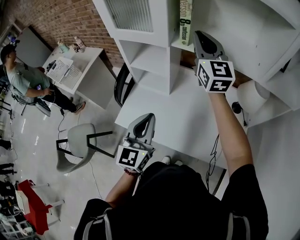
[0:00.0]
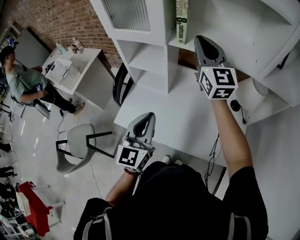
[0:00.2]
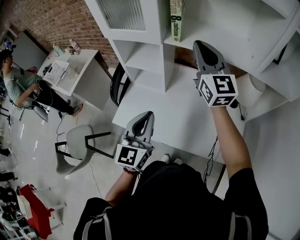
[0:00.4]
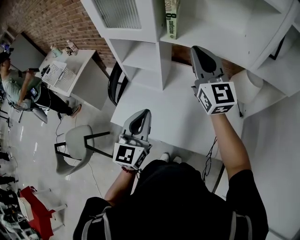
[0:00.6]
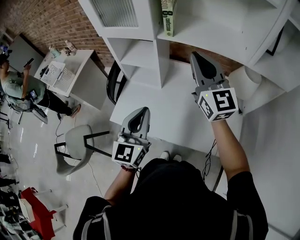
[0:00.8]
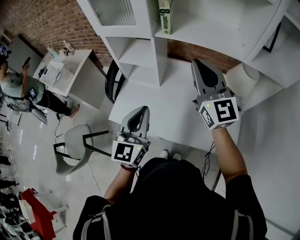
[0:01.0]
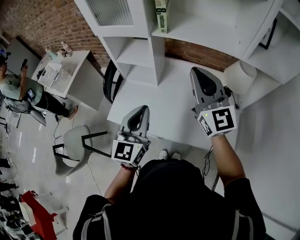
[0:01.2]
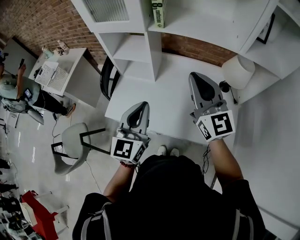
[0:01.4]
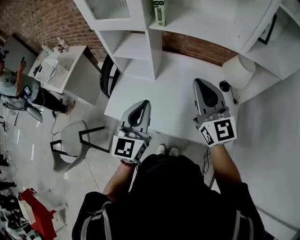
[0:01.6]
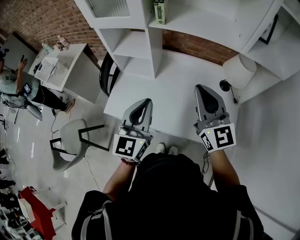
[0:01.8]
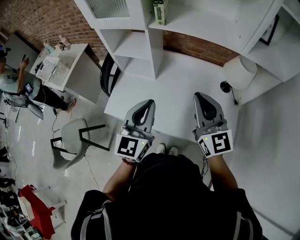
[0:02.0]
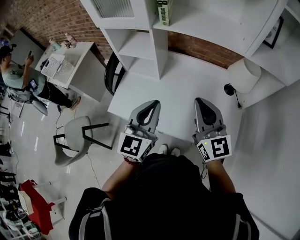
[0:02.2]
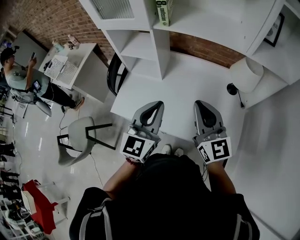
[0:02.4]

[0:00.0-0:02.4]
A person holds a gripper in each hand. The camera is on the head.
0:00.0 to 0:01.2: The right gripper is displaced backward by about 20 cm.
0:01.2 to 0:02.4: The right gripper heads downward and backward, covering some 10 cm, while the left gripper is displaced to the right by about 5 cm.

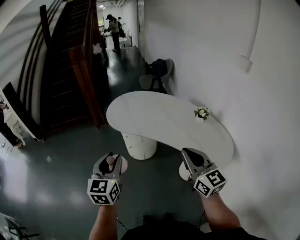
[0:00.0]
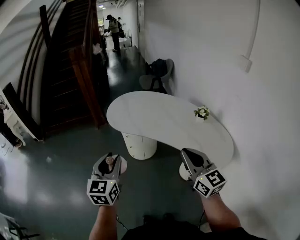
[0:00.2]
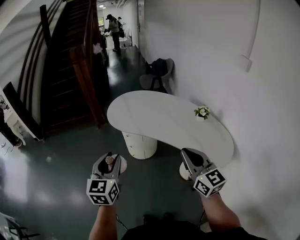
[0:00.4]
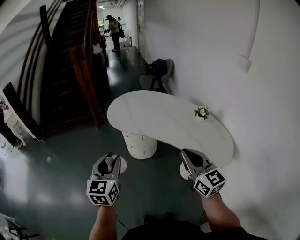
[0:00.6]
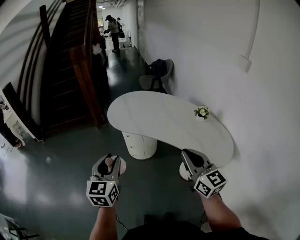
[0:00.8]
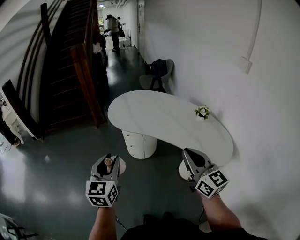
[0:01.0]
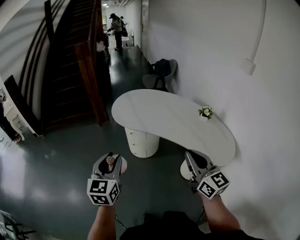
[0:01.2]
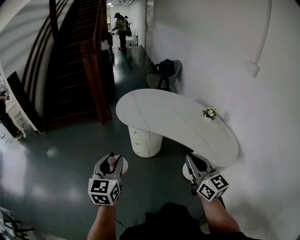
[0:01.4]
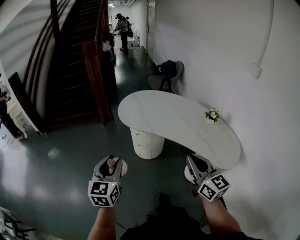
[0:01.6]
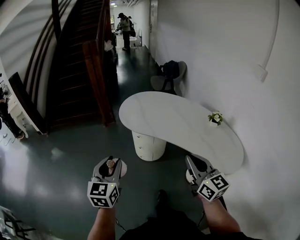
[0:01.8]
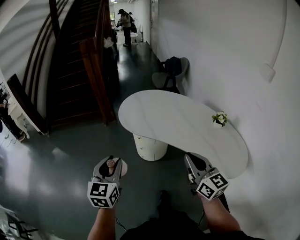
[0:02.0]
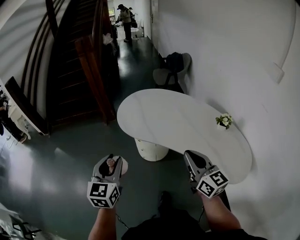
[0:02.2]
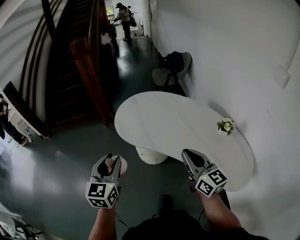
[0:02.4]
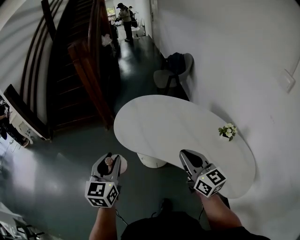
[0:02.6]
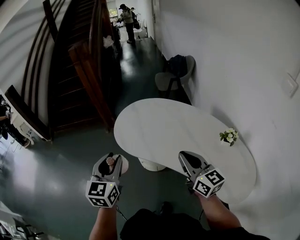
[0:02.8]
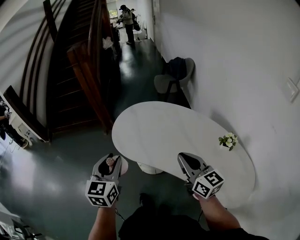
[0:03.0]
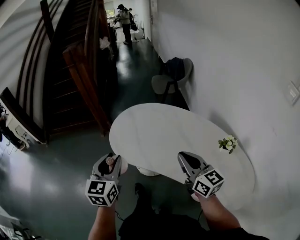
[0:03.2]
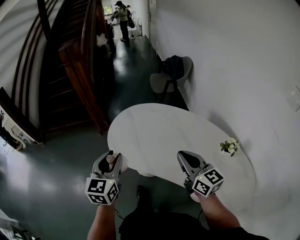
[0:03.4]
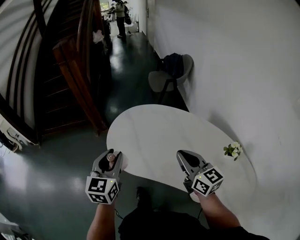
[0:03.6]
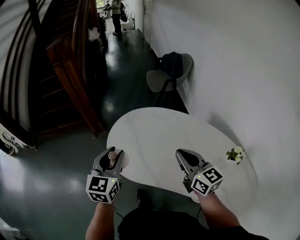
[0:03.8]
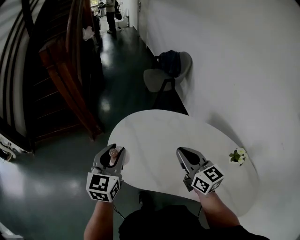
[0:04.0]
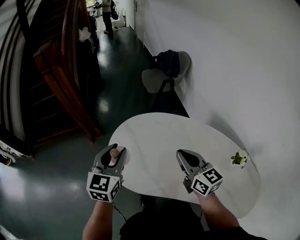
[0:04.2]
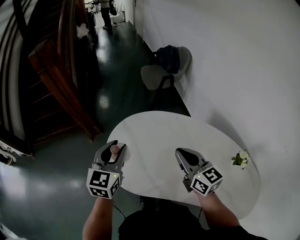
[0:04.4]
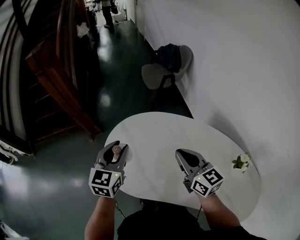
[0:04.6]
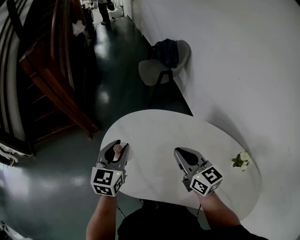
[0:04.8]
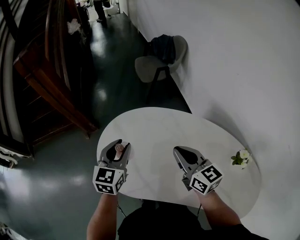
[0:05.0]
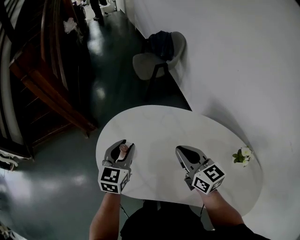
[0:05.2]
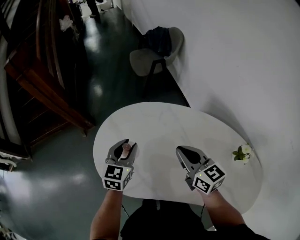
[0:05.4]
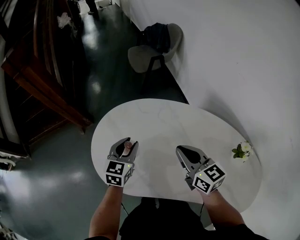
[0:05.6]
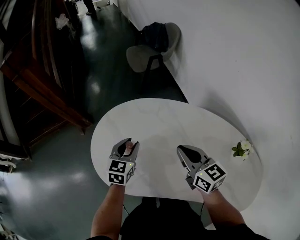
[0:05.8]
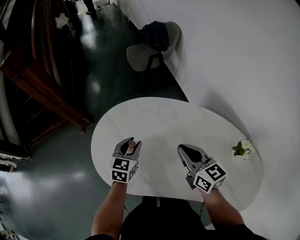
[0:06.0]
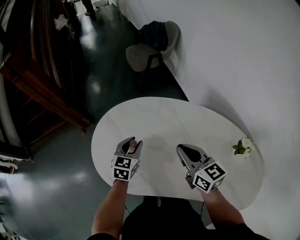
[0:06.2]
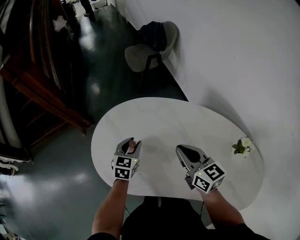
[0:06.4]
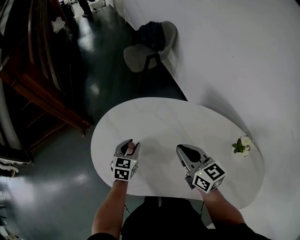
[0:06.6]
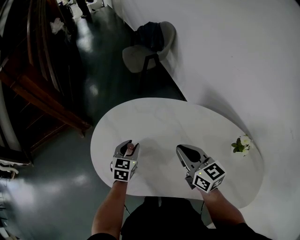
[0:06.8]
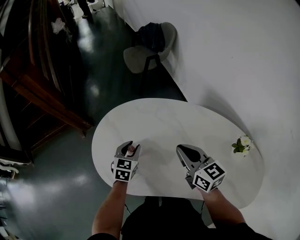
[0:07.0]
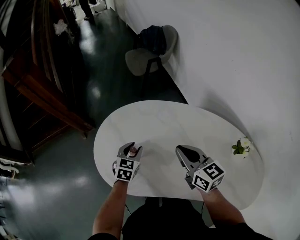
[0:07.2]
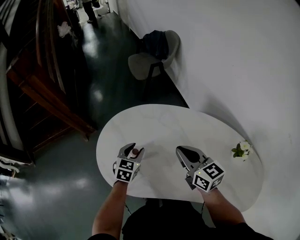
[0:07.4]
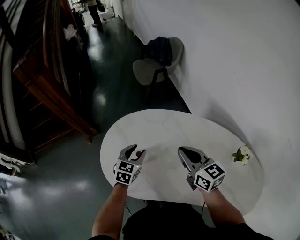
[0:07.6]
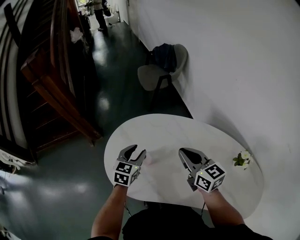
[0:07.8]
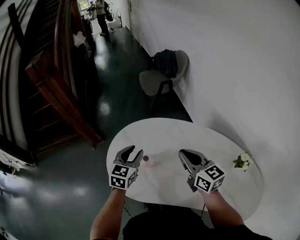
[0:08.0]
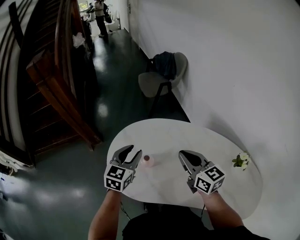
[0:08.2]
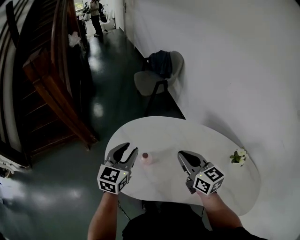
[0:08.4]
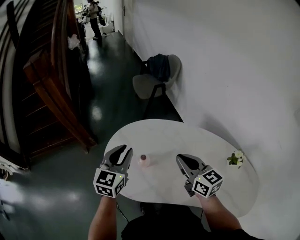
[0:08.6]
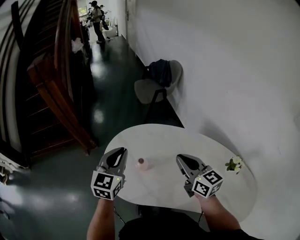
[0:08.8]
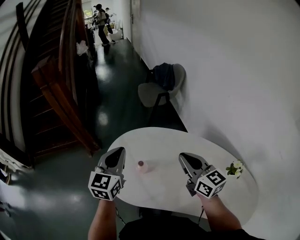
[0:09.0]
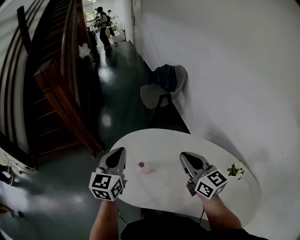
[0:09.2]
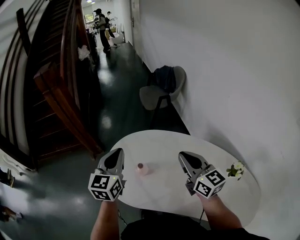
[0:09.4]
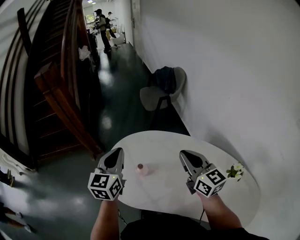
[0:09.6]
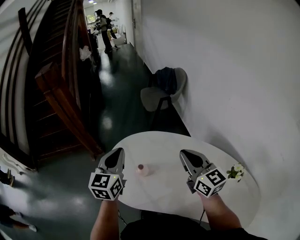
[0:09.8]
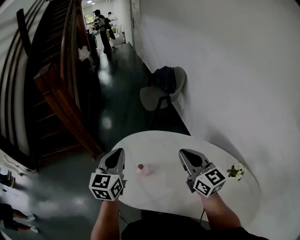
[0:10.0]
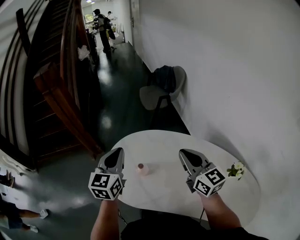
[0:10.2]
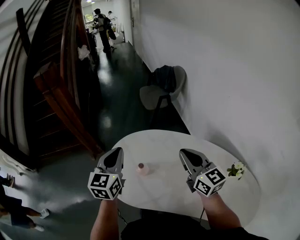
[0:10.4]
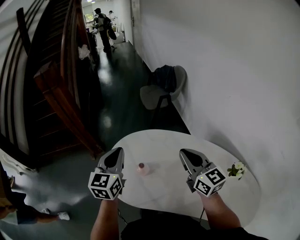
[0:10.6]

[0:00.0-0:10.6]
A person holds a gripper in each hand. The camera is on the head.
0:00.0 to 0:01.6: The two grippers go some 10 cm to the left.
0:01.6 to 0:03.0: The grippers both shift forward by approximately 30 cm.
0:03.0 to 0:04.6: The grippers both shift forward by roughly 30 cm.
0:04.6 to 0:06.0: The right gripper shifts roughly 10 cm downward and to the right; the left gripper shifts some 20 cm downward and to the right.
0:06.0 to 0:07.6: There are only small adjustments of the grippers.
0:07.6 to 0:09.0: The left gripper is displaced upward by some 20 cm, changes its angle by some 30 degrees, and closes its fingers; the right gripper goes about 10 cm upward.
0:09.0 to 0:10.6: There are only small adjustments of the grippers.

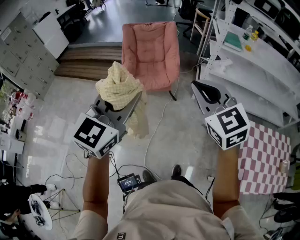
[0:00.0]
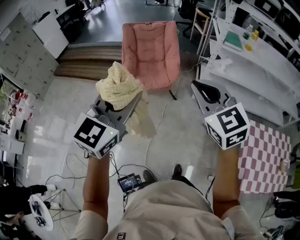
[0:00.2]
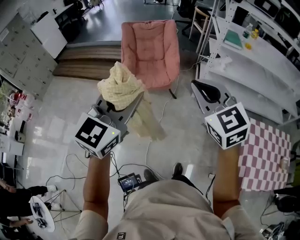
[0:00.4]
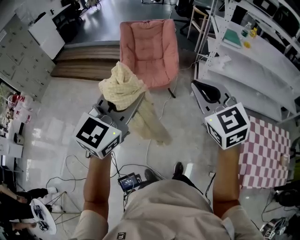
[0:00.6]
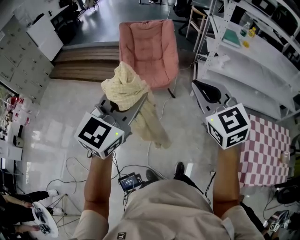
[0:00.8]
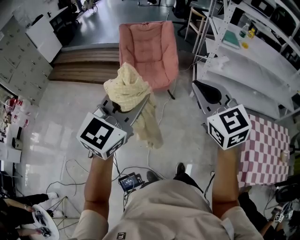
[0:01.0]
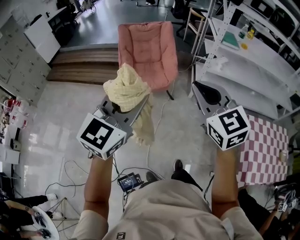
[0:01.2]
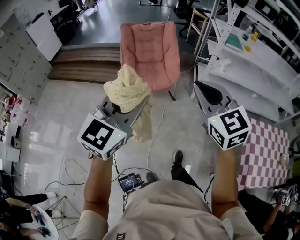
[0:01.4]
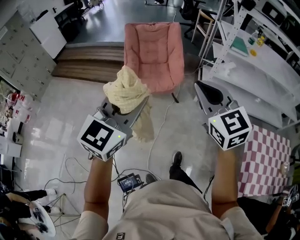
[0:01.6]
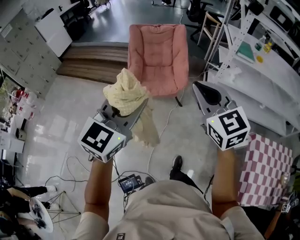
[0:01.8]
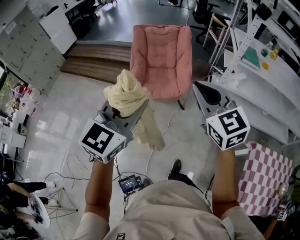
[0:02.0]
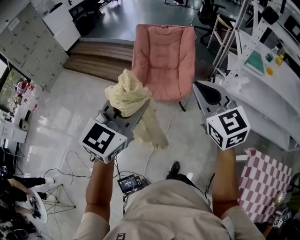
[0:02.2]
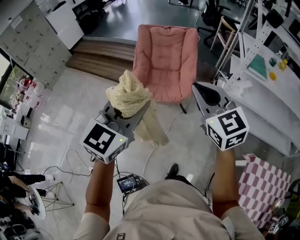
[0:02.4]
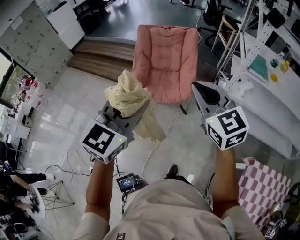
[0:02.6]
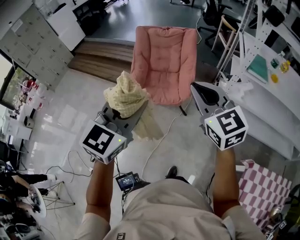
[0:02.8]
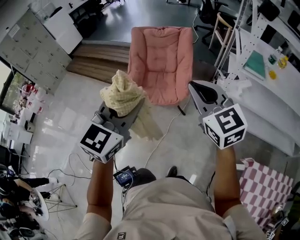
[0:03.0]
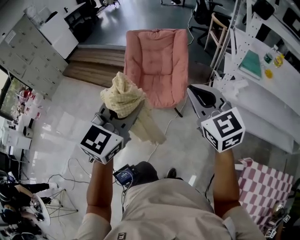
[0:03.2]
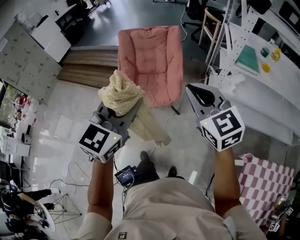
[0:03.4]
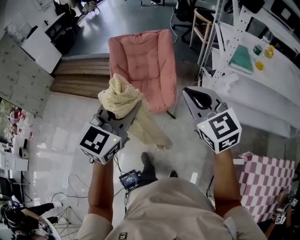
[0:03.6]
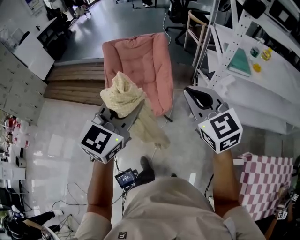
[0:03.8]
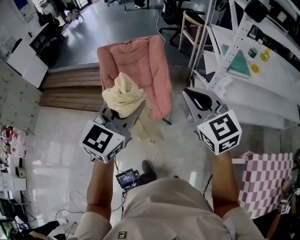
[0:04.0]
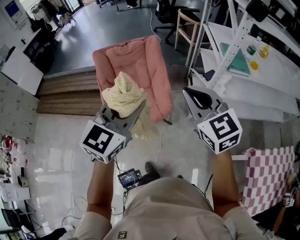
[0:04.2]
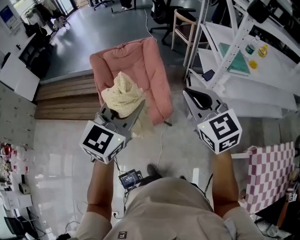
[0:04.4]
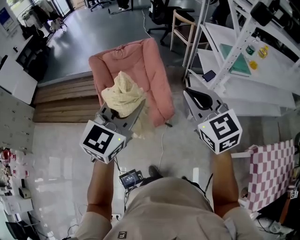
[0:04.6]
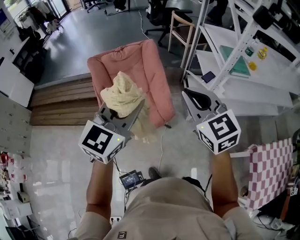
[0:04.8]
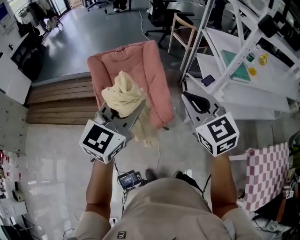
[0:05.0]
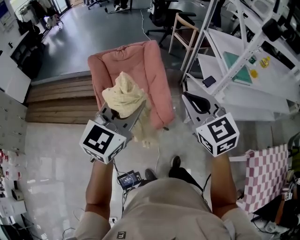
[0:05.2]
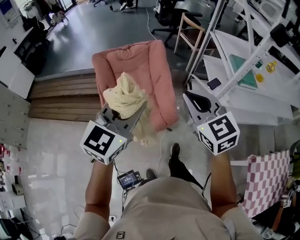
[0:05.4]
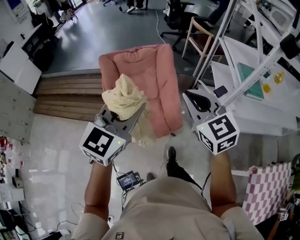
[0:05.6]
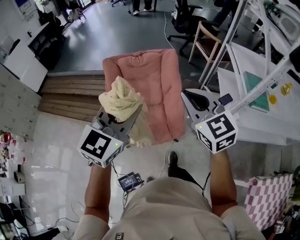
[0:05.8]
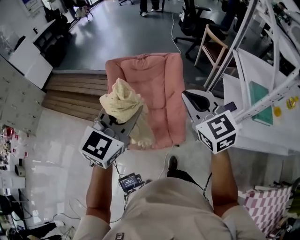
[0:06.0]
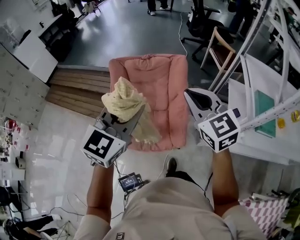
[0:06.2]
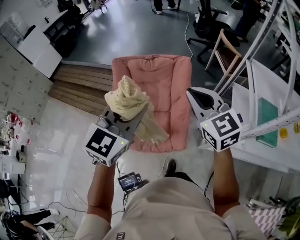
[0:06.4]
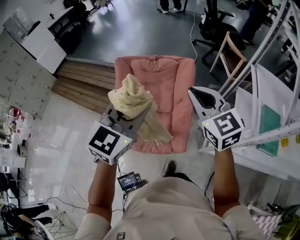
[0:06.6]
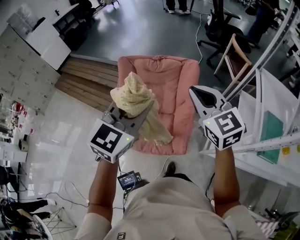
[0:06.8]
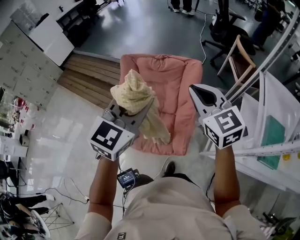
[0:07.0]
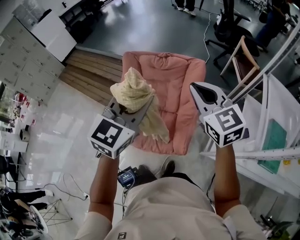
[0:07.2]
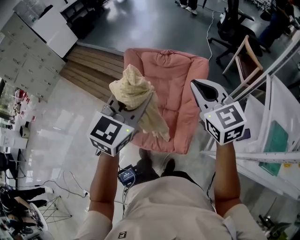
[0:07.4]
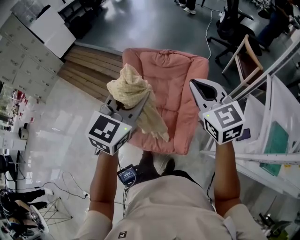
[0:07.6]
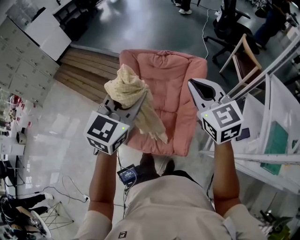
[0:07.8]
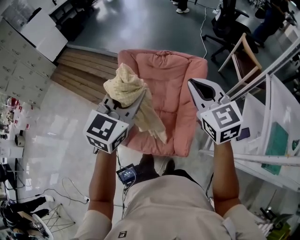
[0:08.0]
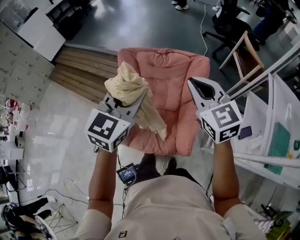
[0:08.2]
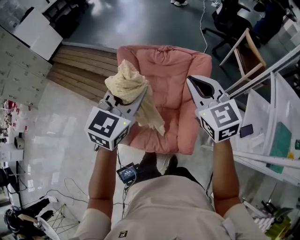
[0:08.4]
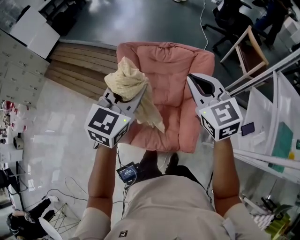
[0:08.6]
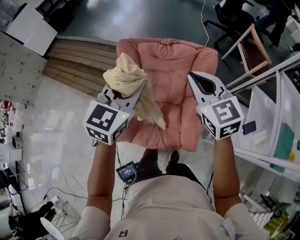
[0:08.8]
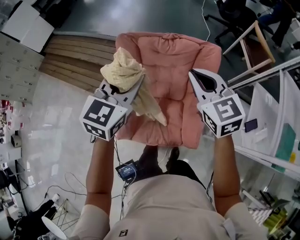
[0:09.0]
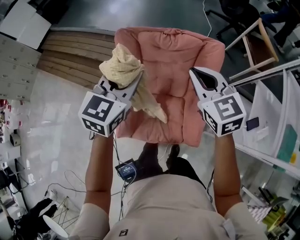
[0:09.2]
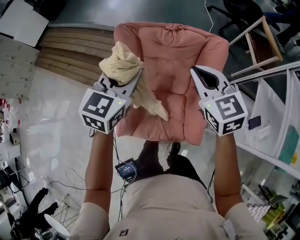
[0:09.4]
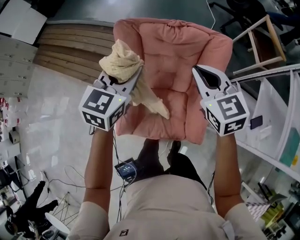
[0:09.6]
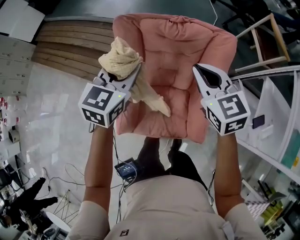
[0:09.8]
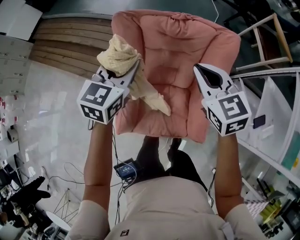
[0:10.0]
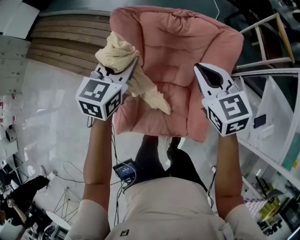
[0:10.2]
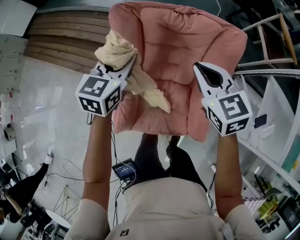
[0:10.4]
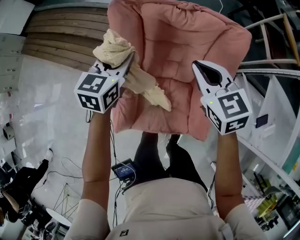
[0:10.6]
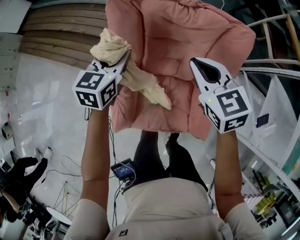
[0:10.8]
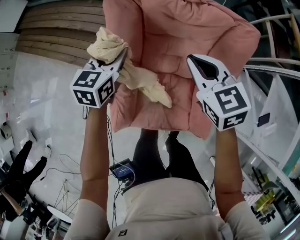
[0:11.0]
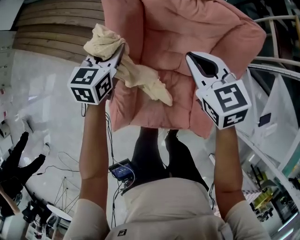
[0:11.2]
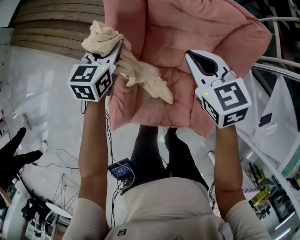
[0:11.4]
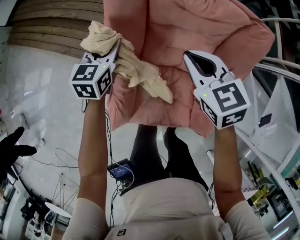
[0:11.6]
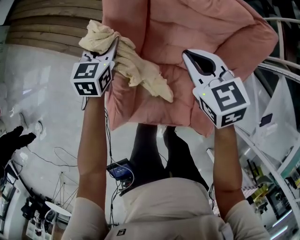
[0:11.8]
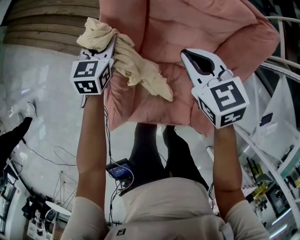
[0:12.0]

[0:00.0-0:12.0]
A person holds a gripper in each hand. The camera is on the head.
0:00.0 to 0:01.6: The two grippers go some 5 cm to the left.
0:01.6 to 0:03.0: The grippers both shift forward and to the right by roughly 25 cm.
0:03.0 to 0:04.4: The two grippers go about 20 cm forward. The left gripper changes its angle by about 20 degrees, while the right gripper rotates approximately 20 degrees.
0:04.4 to 0:06.0: The right gripper heads forward, covering approximately 20 cm, while the left gripper heads forward and to the left, covering some 20 cm.
0:06.0 to 0:07.6: Both grippers travel together forward, roughly 15 cm.
0:07.6 to 0:09.0: The grippers both shift forward, to the left and downward by some 20 cm.
0:09.0 to 0:10.4: The left gripper is displaced downward, forward and to the left by about 25 cm. Meanwhile the right gripper heads downward, covering about 15 cm.
0:10.4 to 0:12.0: The two grippers go approximately 20 cm downward and to the left.
